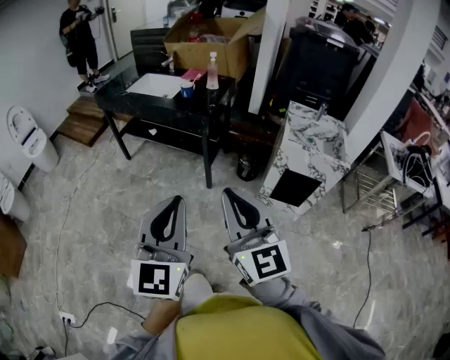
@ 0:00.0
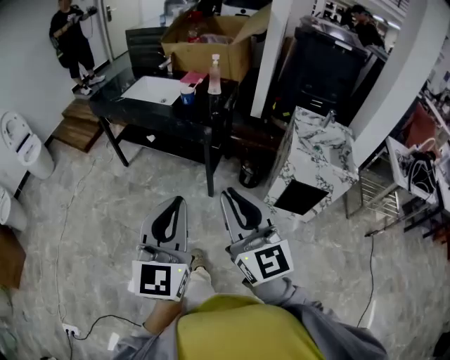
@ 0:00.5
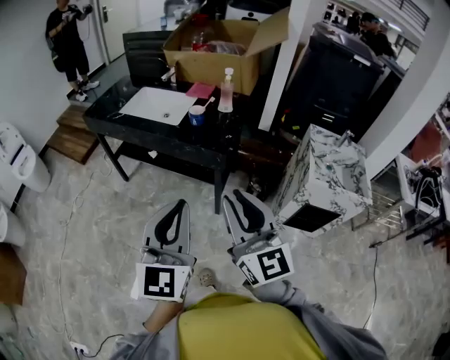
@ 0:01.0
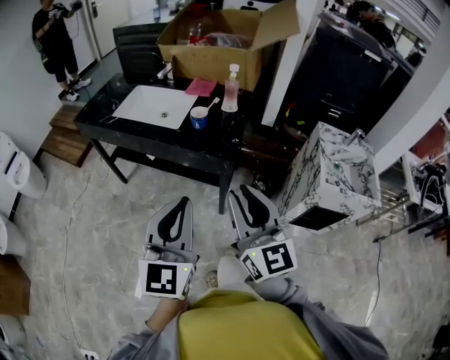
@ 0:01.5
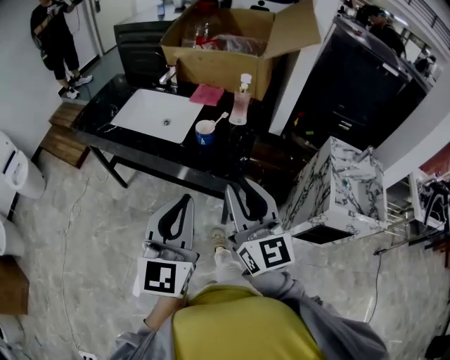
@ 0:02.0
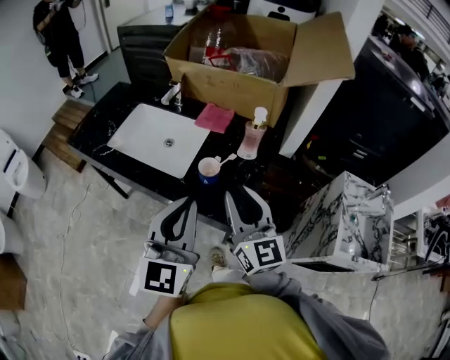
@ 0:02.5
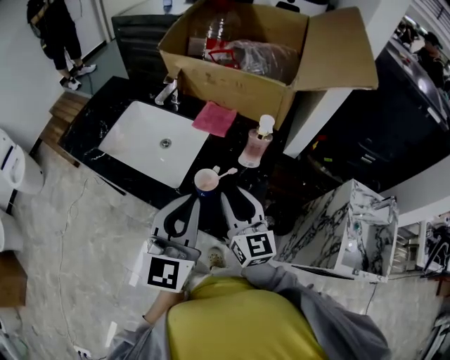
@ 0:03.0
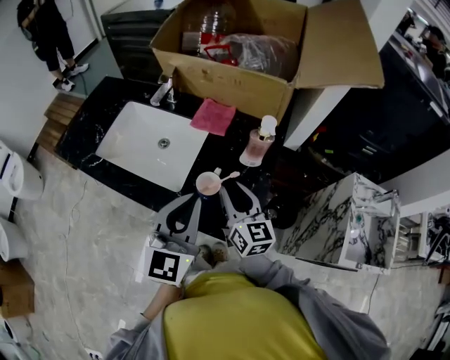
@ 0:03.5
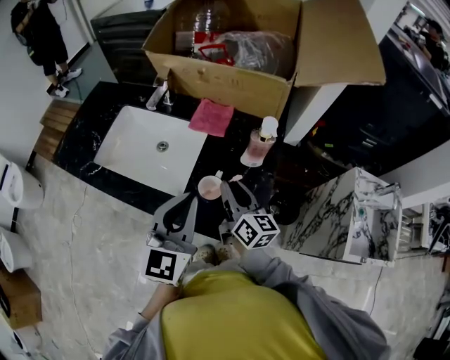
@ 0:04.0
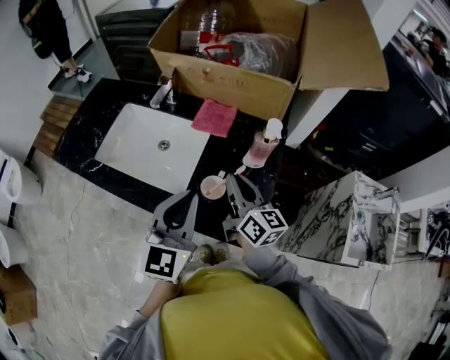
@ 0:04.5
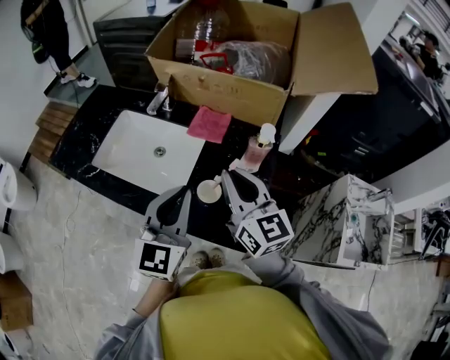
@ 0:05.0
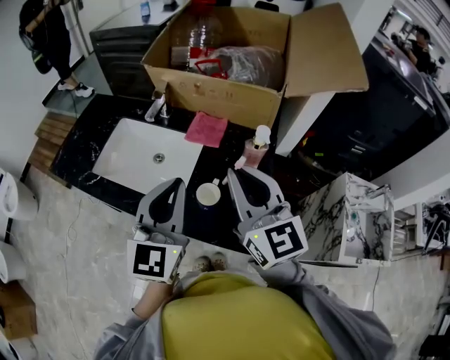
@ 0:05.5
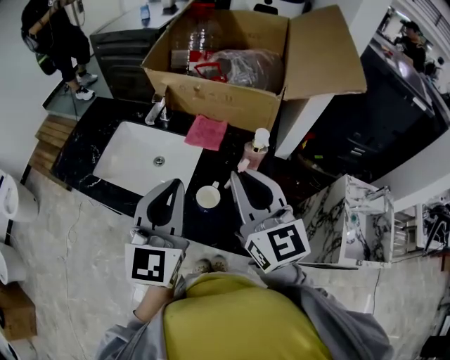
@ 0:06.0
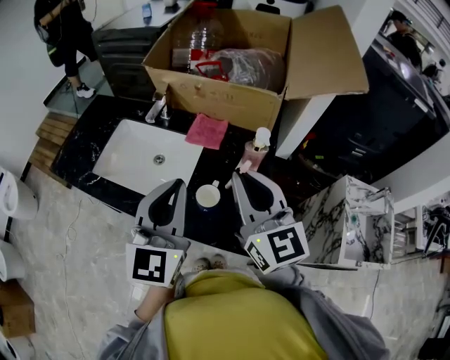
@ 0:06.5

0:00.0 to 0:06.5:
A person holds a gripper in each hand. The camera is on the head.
0:00.0 to 0:02.0: The pair of grippers is taken forward, roughly 50 cm. The right gripper opens.
0:02.0 to 0:04.5: The grippers both shift forward by roughly 35 cm. The right gripper changes its angle by about 30 degrees, and closes its fingers.
0:04.5 to 0:06.5: The left gripper shifts about 10 cm upward. The right gripper moves upward, some 15 cm, and rotates roughly 40 degrees.

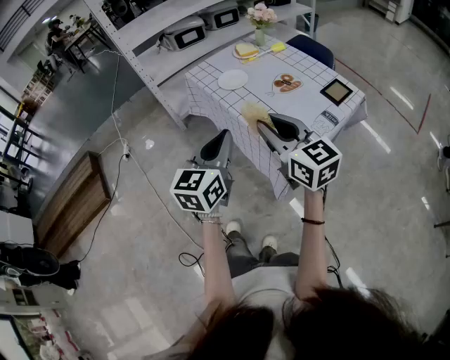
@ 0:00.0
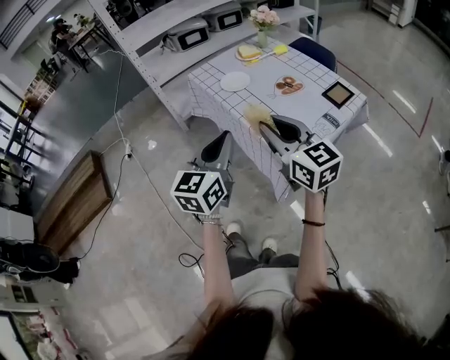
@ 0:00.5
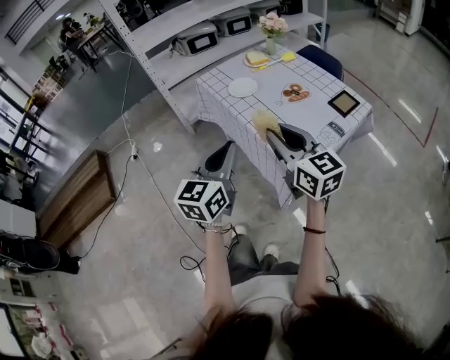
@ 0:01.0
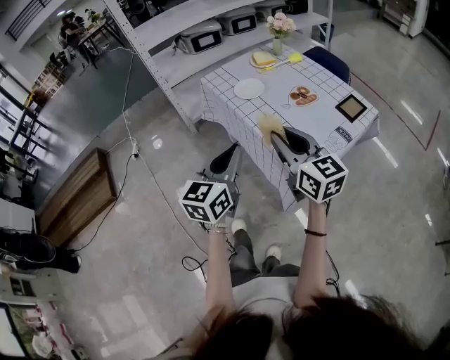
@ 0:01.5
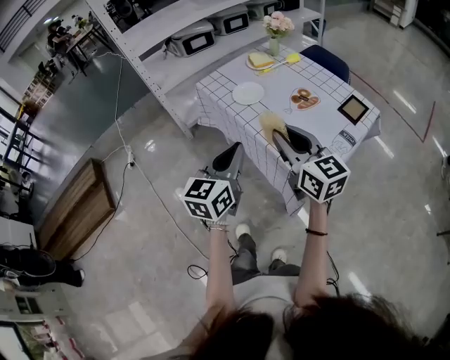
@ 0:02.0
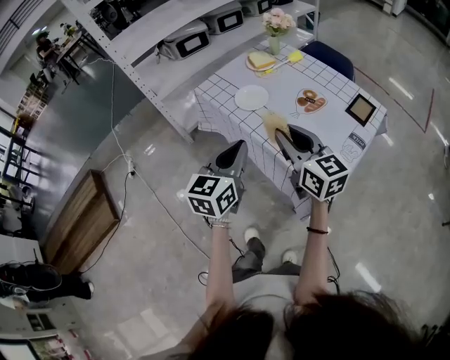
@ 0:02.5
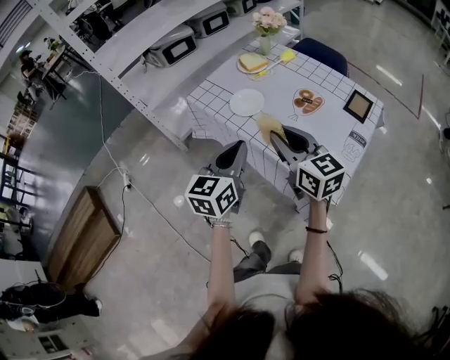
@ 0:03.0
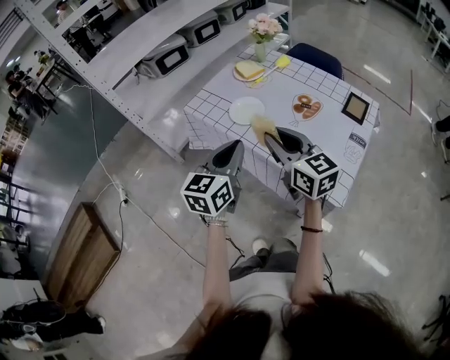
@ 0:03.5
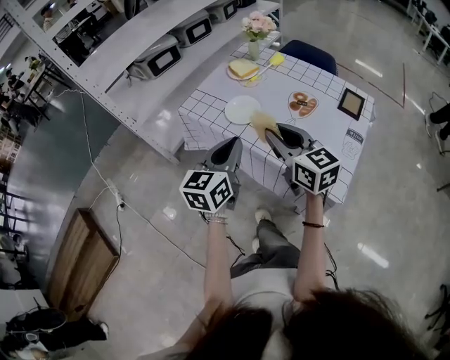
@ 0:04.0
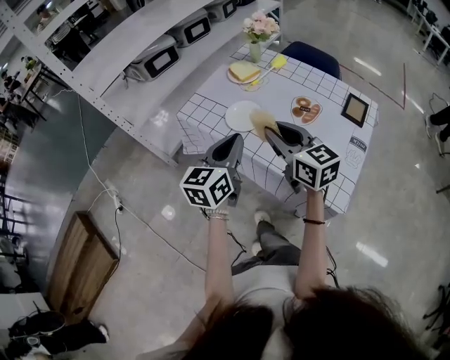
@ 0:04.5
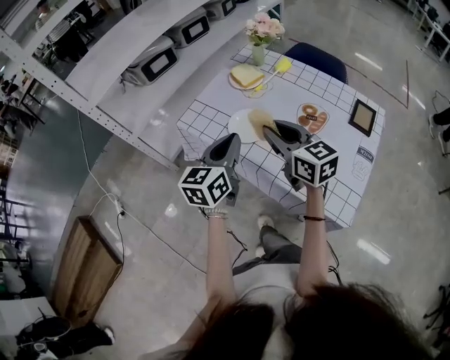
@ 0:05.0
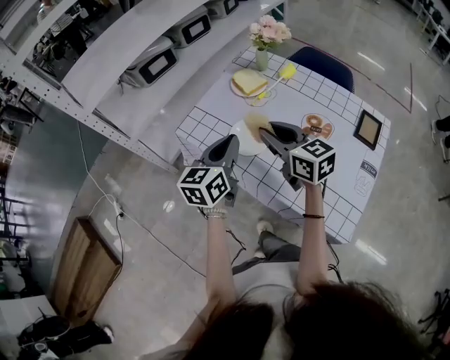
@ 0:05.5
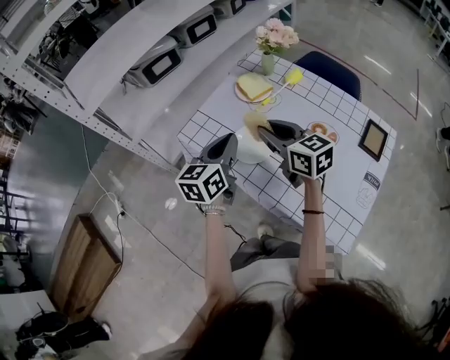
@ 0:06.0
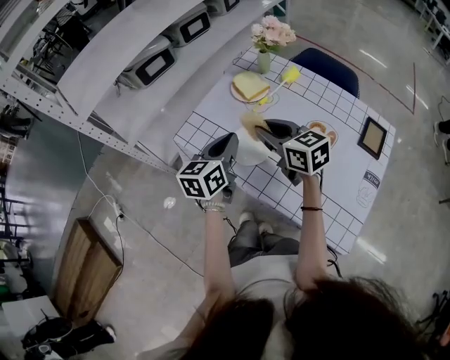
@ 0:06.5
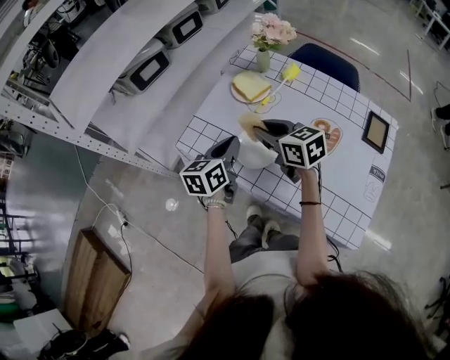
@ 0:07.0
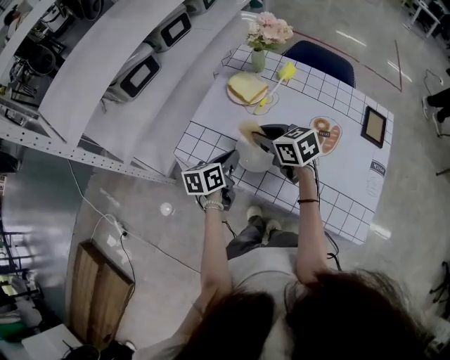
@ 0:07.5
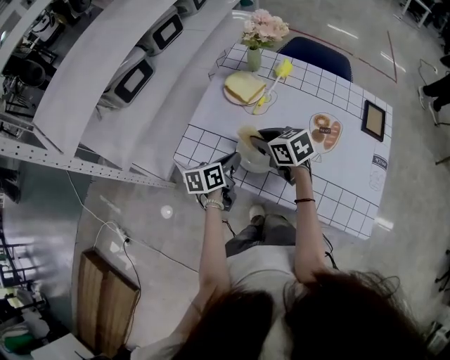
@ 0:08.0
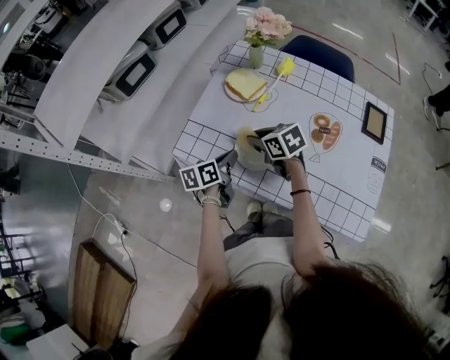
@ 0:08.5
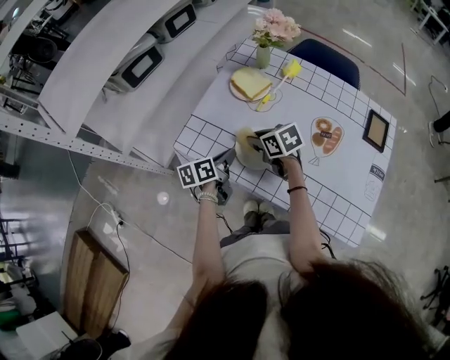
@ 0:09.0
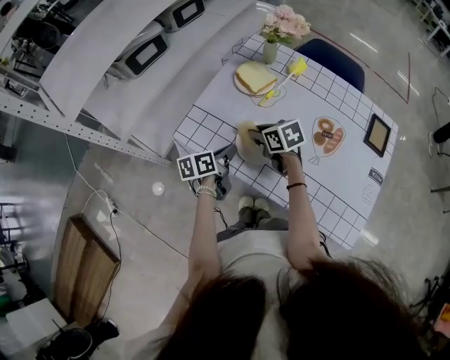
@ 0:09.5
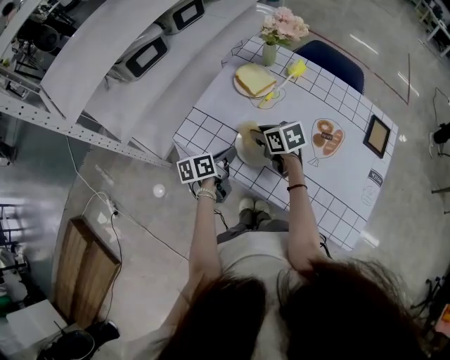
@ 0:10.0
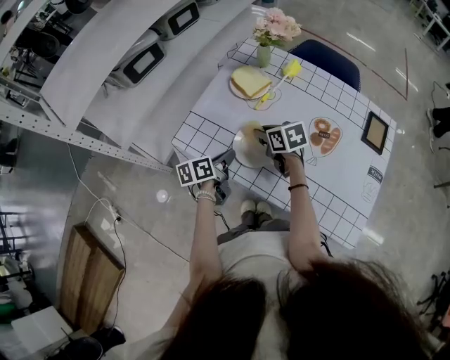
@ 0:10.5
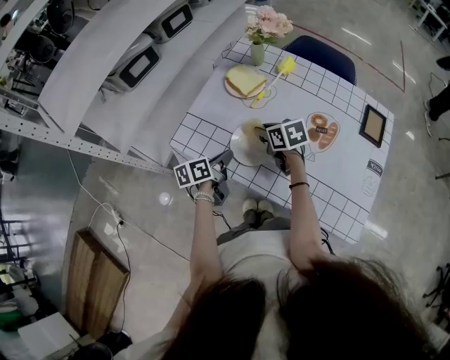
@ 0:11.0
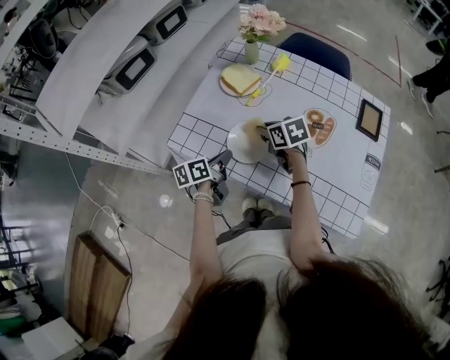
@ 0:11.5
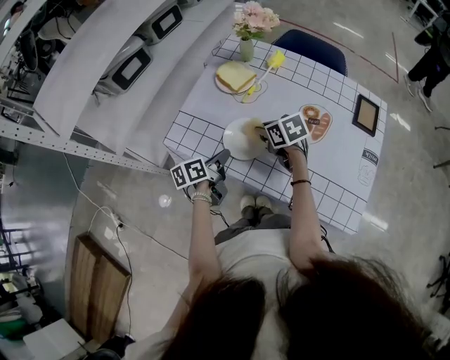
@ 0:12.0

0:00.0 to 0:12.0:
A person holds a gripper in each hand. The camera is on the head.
0:00.0 to 0:02.0: The grippers both shift forward by some 10 cm.
0:02.0 to 0:04.0: Both grippers move forward and to the left, roughly 15 cm.
0:04.0 to 0:06.0: Both grippers travel together forward, approximately 20 cm.
0:06.0 to 0:08.0: The right gripper moves downward and forward, approximately 15 cm, and rotates some 20 degrees. Meanwhile the left gripper shifts about 15 cm downward, and swivels about 30 degrees.
0:08.0 to 0:10.0: The right gripper shifts some 5 cm downward.
0:10.0 to 0:12.0: The right gripper moves to the right, roughly 5 cm.

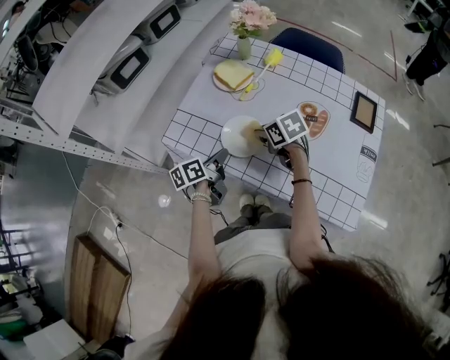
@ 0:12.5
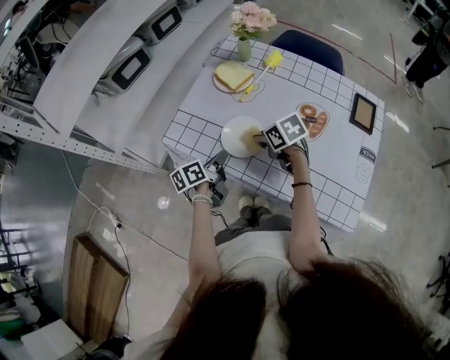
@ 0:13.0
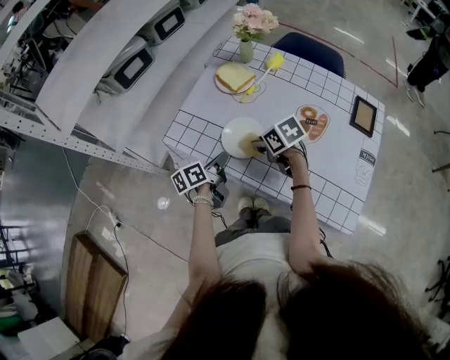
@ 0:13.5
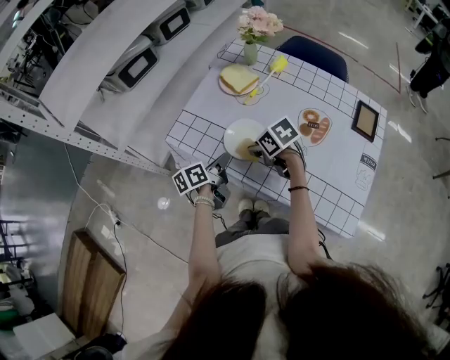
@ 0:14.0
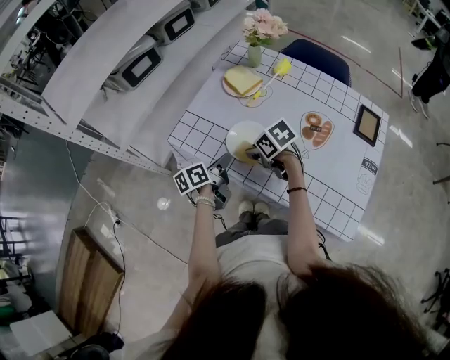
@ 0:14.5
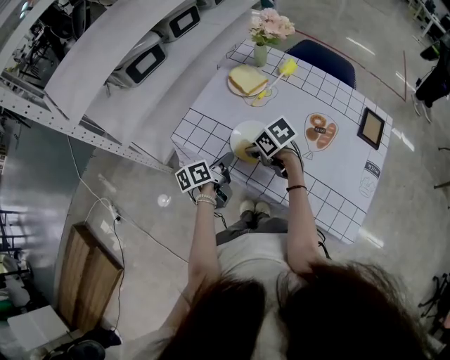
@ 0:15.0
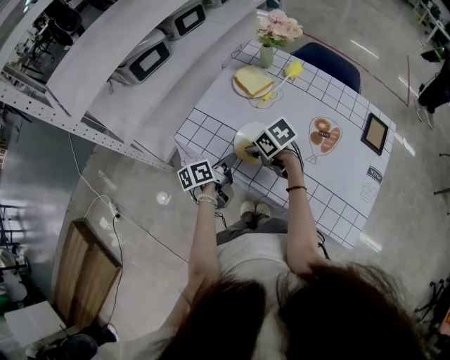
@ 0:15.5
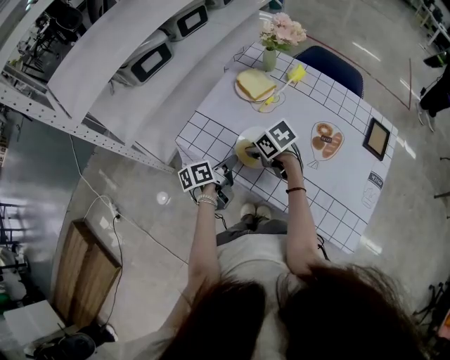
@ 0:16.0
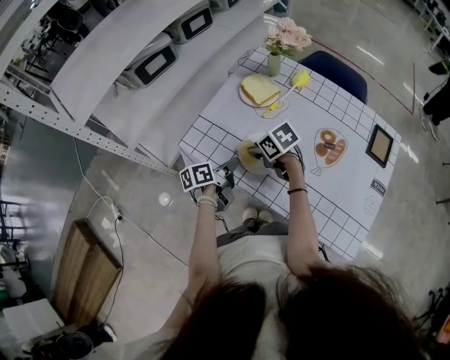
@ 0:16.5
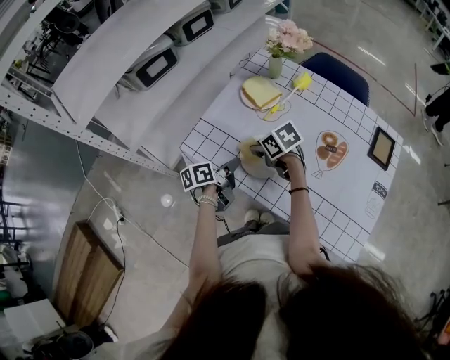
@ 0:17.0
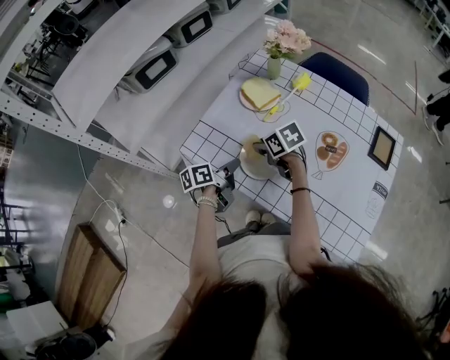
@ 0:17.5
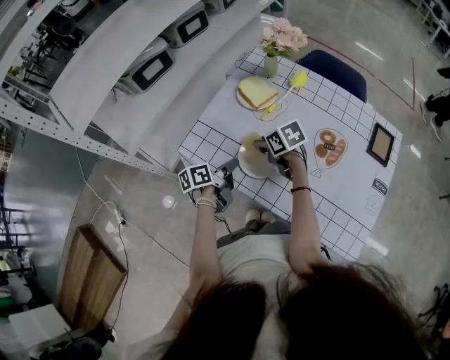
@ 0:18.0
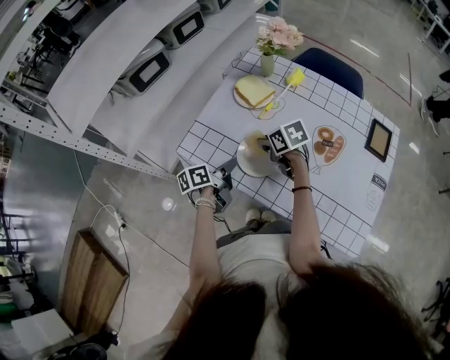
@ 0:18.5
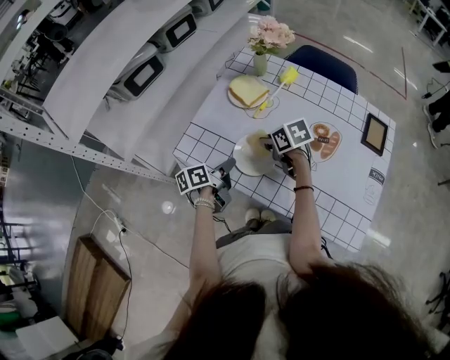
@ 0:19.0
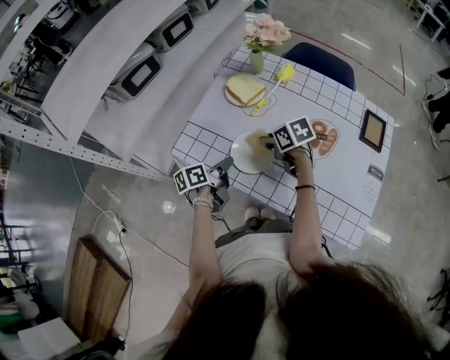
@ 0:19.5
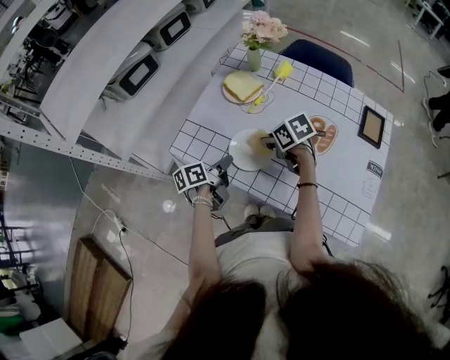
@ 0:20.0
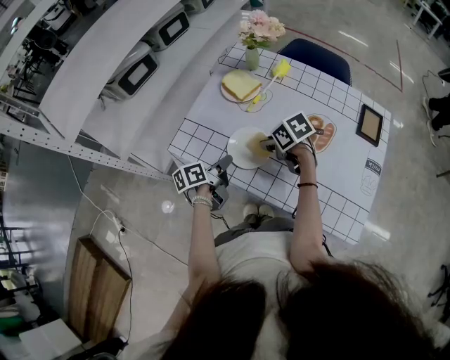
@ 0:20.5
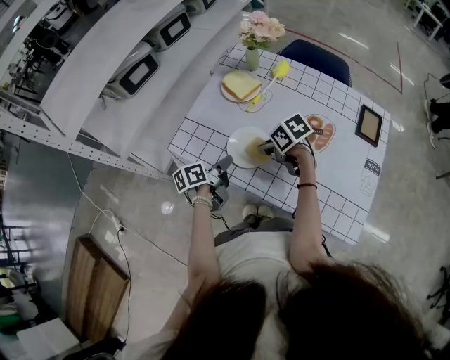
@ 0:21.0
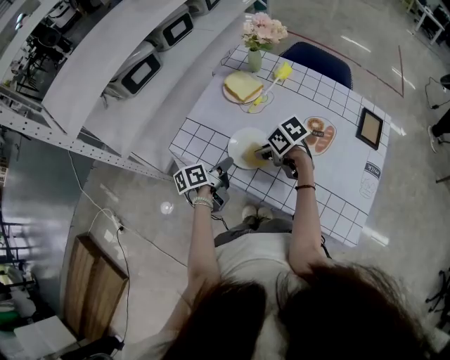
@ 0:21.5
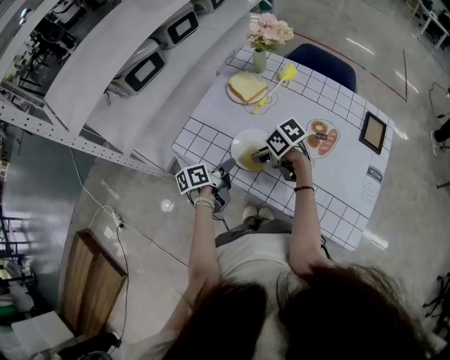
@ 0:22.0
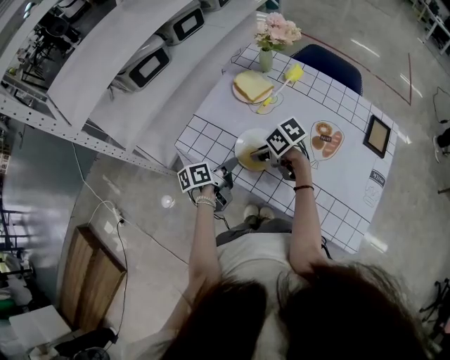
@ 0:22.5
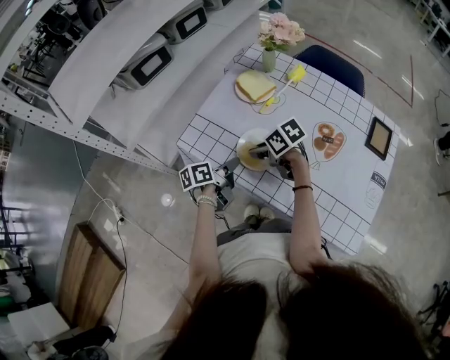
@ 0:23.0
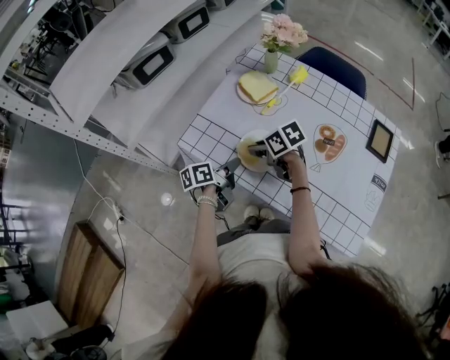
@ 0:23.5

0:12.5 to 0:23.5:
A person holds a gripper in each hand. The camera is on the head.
0:12.5 to 0:14.5: The right gripper is displaced to the left by roughly 5 cm.
0:14.5 to 0:16.0: The grippers move only a little.
0:16.0 to 0:18.0: The right gripper shifts by about 5 cm.
0:18.0 to 0:20.0: The right gripper is displaced to the right by roughly 5 cm.
0:20.0 to 0:21.5: The right gripper moves about 5 cm.
0:21.5 to 0:23.5: The right gripper shifts by roughly 5 cm.
